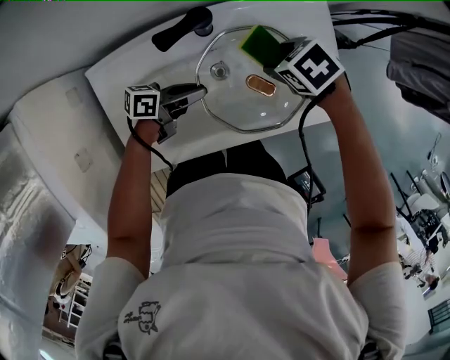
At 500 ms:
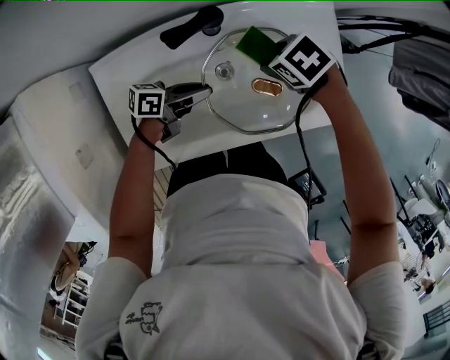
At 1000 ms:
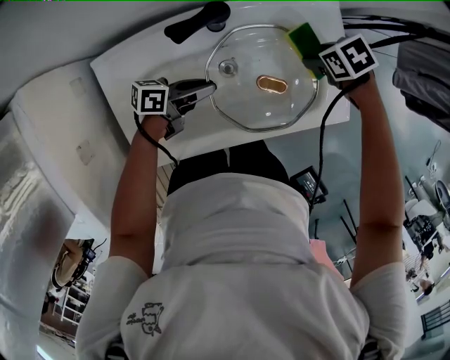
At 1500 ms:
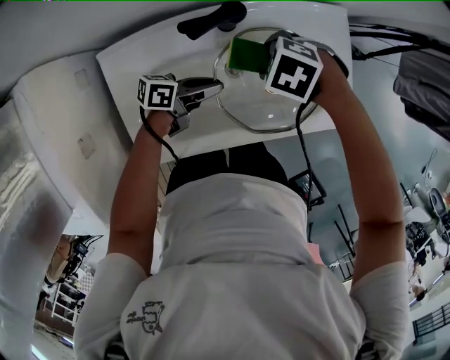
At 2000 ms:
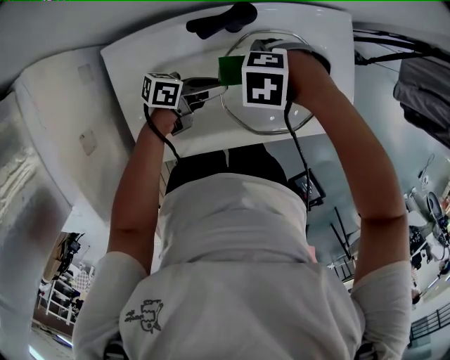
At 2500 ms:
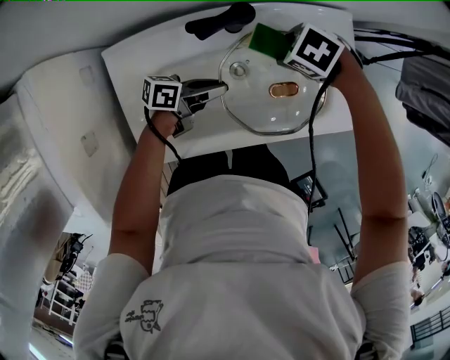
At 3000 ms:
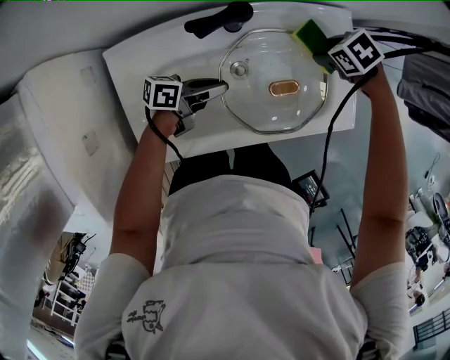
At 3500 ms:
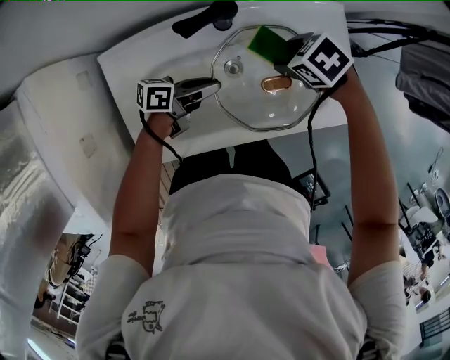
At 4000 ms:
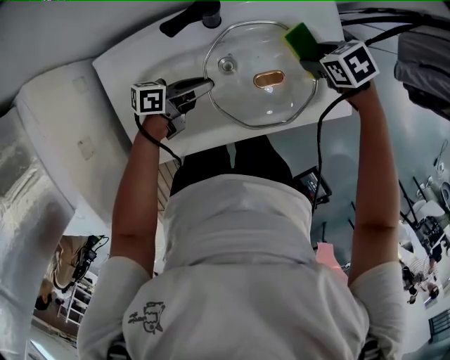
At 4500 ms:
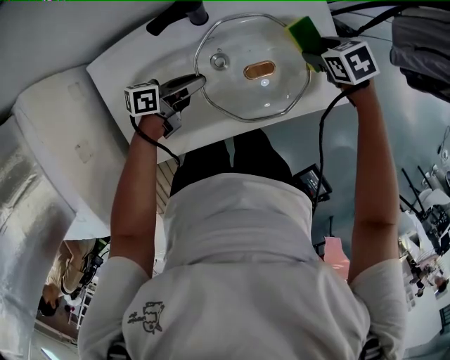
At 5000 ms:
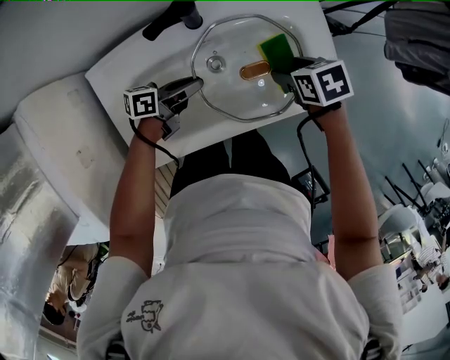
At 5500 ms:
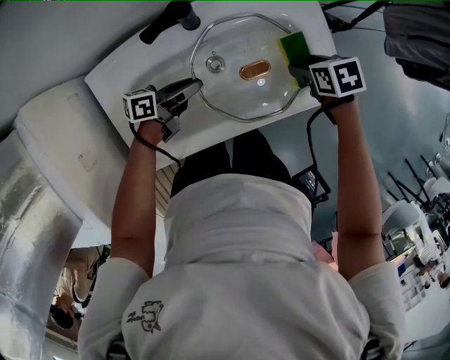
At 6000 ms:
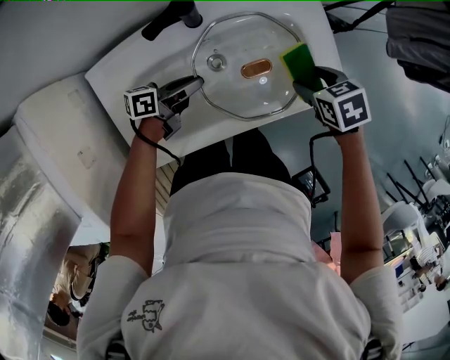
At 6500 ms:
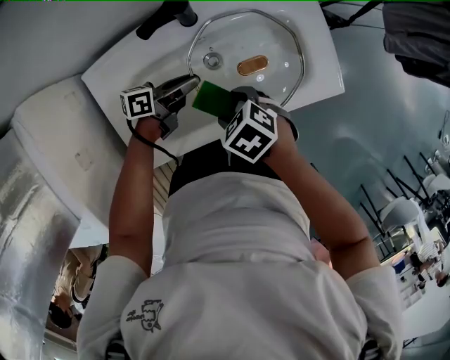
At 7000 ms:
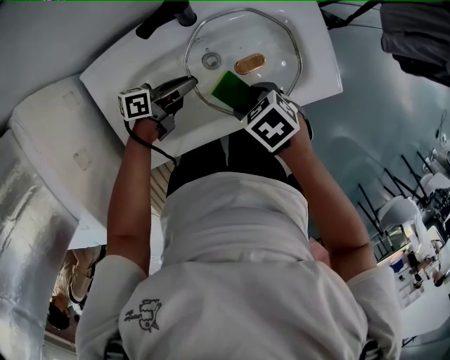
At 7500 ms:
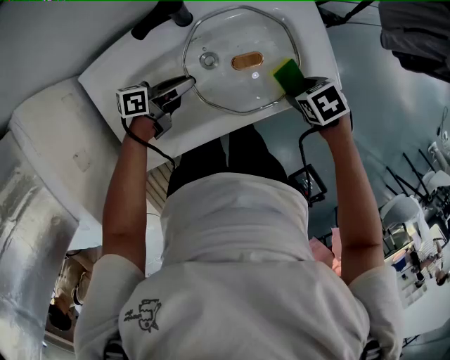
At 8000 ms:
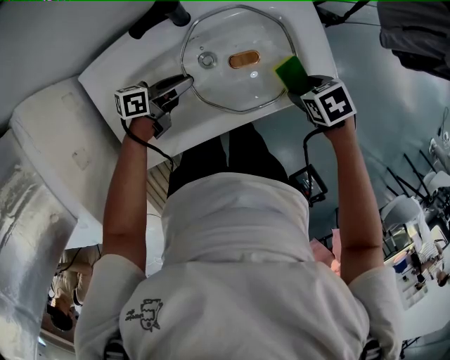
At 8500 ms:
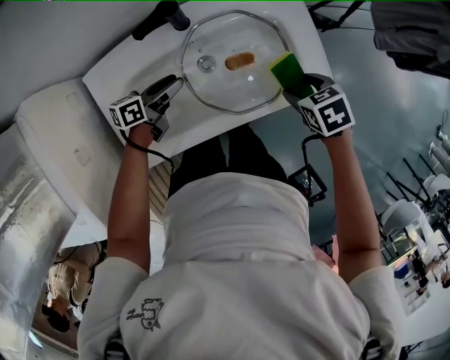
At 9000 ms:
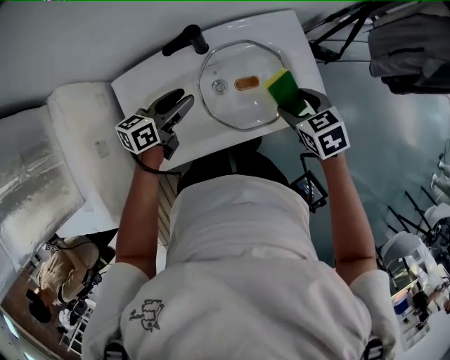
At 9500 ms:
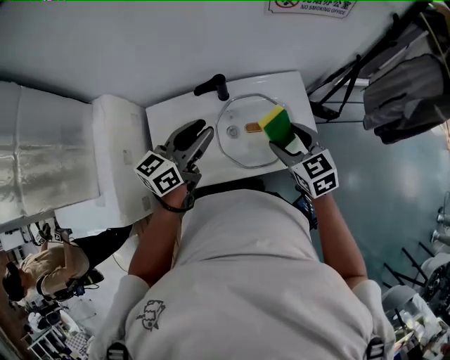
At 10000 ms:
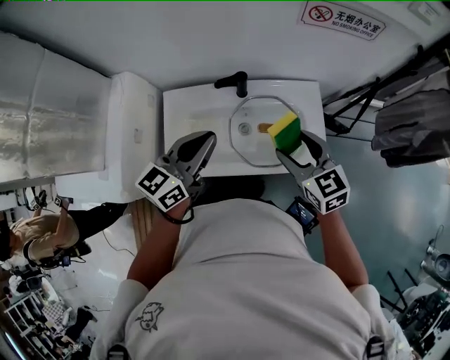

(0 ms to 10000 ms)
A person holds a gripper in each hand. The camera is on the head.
0 ms - 2000 ms: The right gripper ends up roughly 10 cm from where it was, and rolls counterclockwise, seen from behind, by roughly 40 degrees.
2000 ms - 4000 ms: The right gripper shifts by about 20 cm, and rotates around the line of its fingers by about 50 degrees, clockwise from behind.
4000 ms - 6000 ms: The right gripper ends up about 10 cm from where it was.
8000 ms - 10000 ms: The two grippers go approximately 35 cm upward. The right gripper tips its fingers upward by roughly 50 degrees, while the left gripper turns by some 60 degrees, and closes.

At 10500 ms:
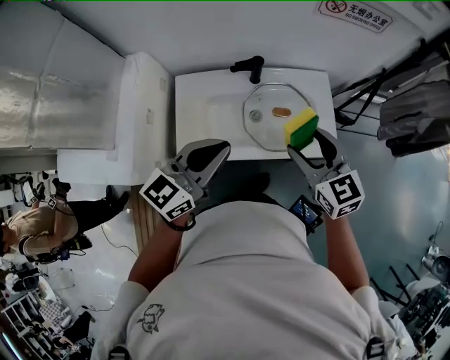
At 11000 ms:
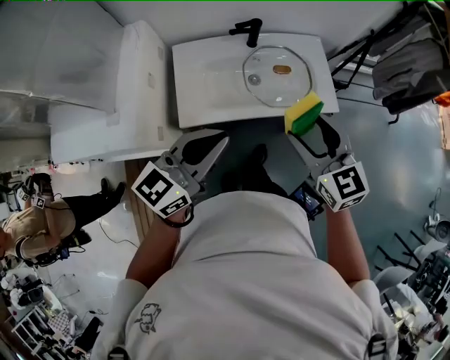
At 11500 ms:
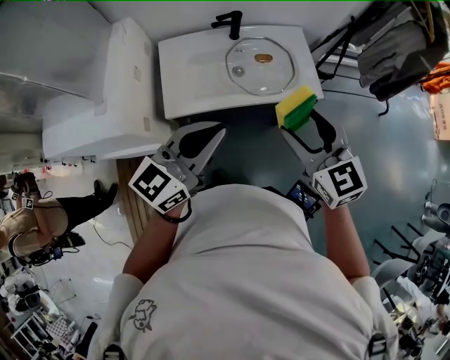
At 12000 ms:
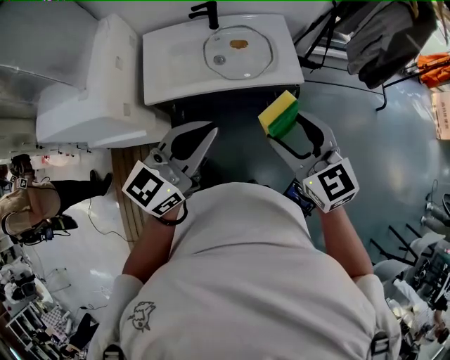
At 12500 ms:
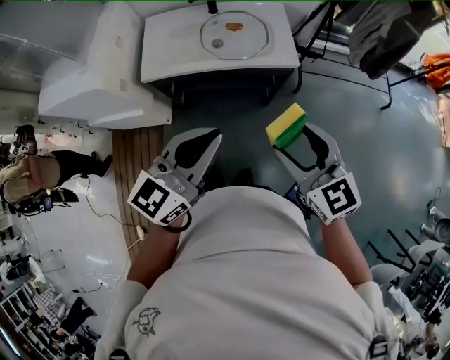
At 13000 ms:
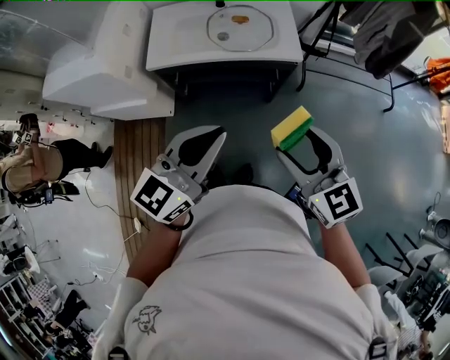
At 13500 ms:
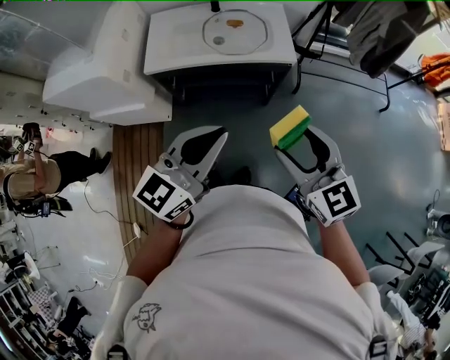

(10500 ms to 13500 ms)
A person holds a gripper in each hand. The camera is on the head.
10500 ms - 12000 ms: The right gripper goes about 25 cm backward, while the left gripper is displaced backward and to the right by about 25 cm.
12000 ms - 13500 ms: The two grippers go approximately 15 cm backward and to the right.

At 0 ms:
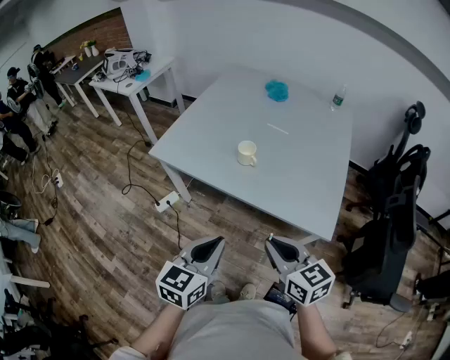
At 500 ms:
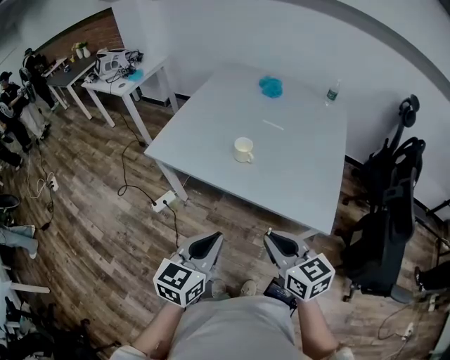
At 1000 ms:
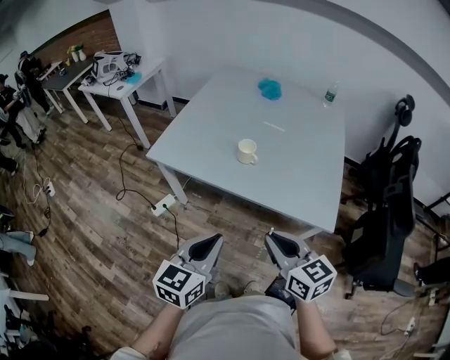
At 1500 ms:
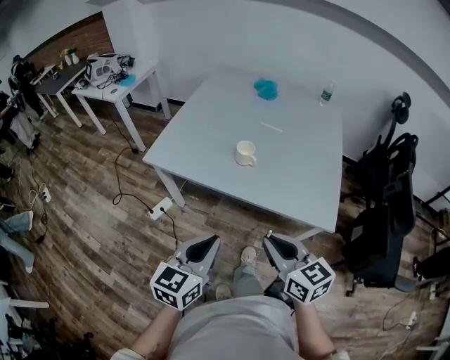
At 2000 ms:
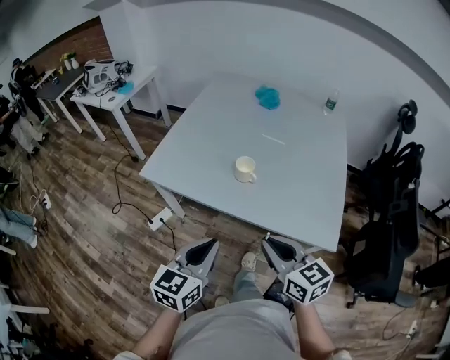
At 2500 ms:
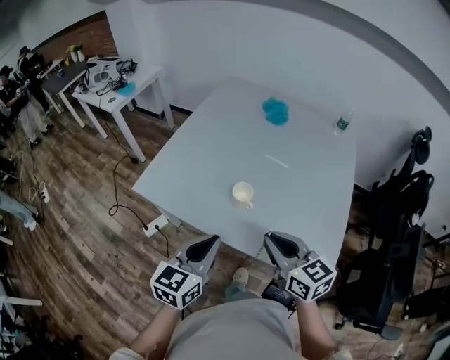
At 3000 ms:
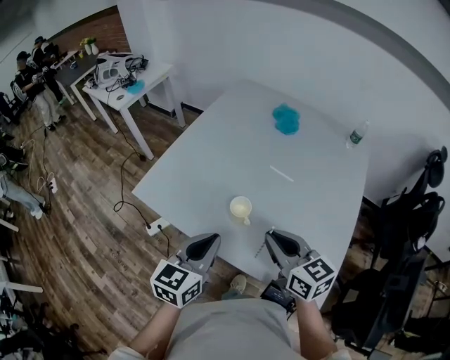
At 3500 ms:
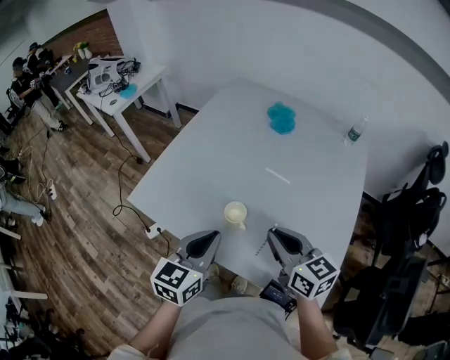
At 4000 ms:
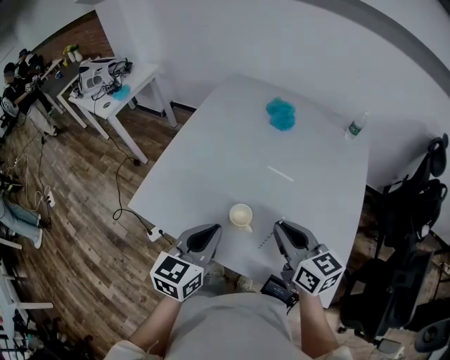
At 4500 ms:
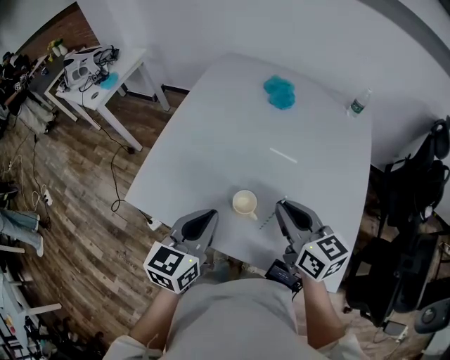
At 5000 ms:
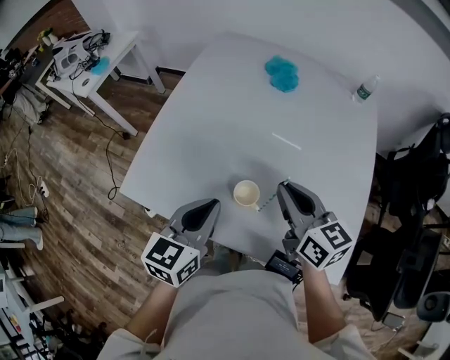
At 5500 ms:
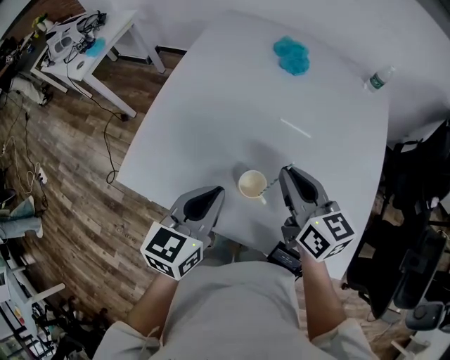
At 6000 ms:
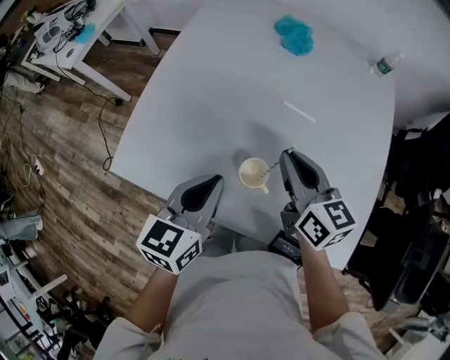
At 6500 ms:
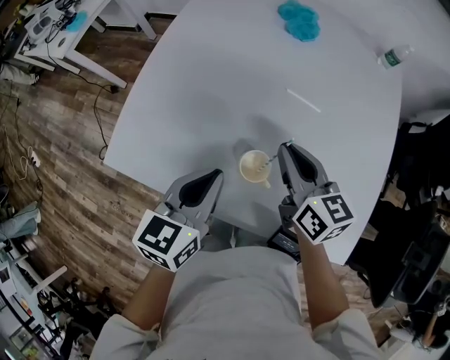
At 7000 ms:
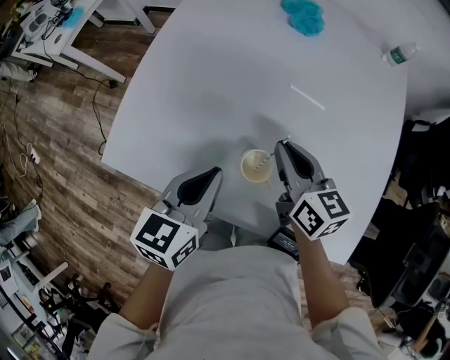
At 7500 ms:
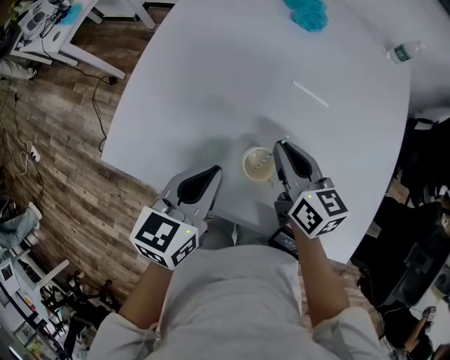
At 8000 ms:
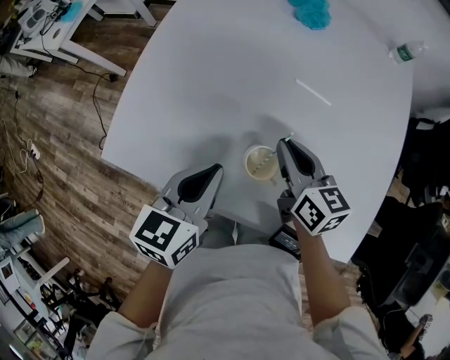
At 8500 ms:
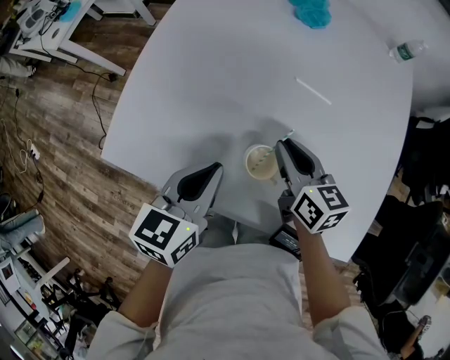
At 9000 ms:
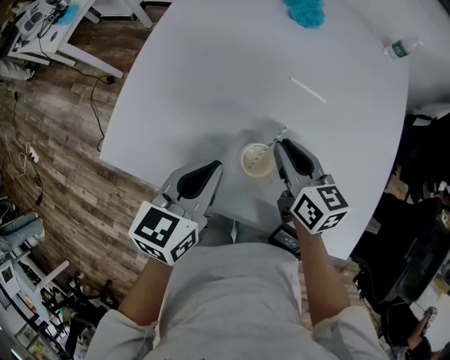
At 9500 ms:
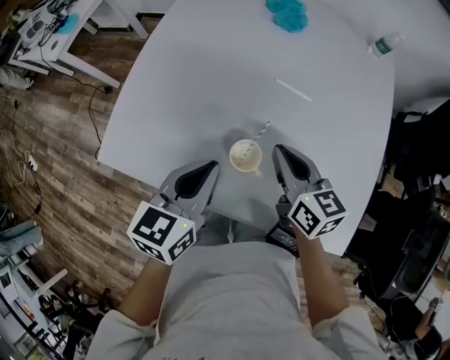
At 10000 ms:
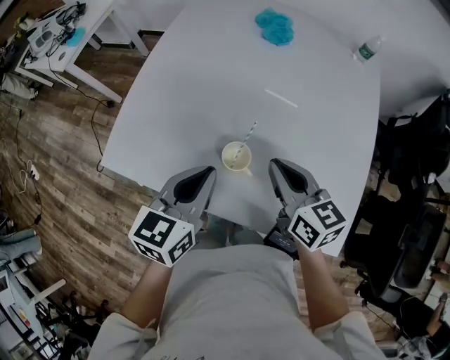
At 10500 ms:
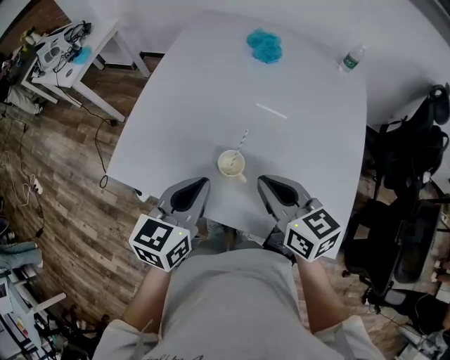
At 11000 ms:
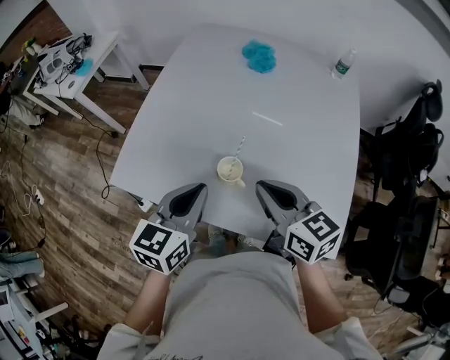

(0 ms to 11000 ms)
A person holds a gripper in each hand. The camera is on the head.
0 ms - 2000 ms: The two grippers go roughly 10 cm forward.
2000 ms - 3500 ms: Both grippers move forward and to the right, about 25 cm.
3500 ms - 5500 ms: Both grippers move forward, about 10 cm.
5500 ms - 7500 ms: The left gripper moves downward, about 5 cm. Meanwhile the right gripper heads downward, covering some 10 cm.
7500 ms - 9000 ms: The grippers move only a little.
9000 ms - 11000 ms: The left gripper goes some 10 cm upward and backward. The right gripper travels upward and backward by about 20 cm.

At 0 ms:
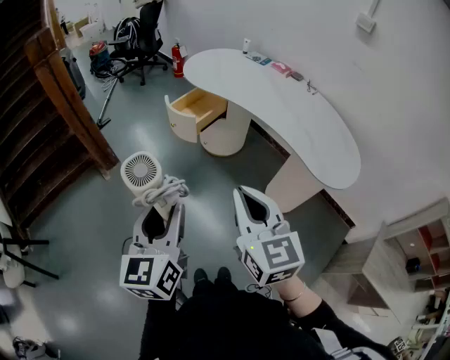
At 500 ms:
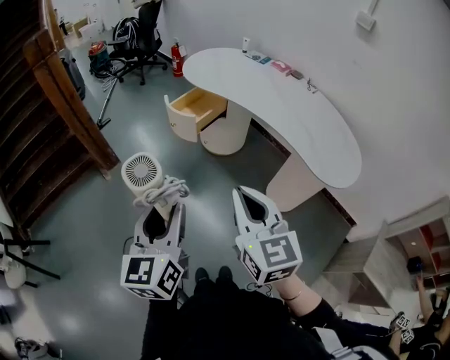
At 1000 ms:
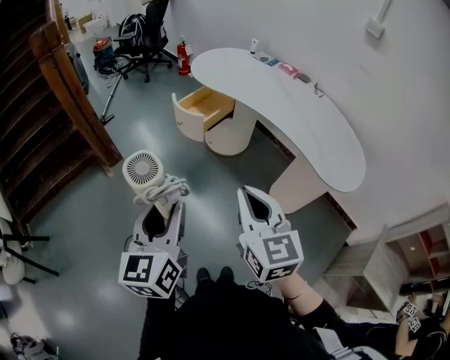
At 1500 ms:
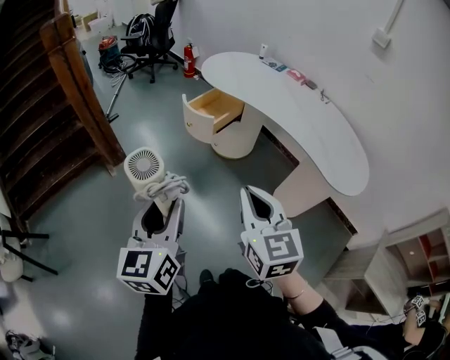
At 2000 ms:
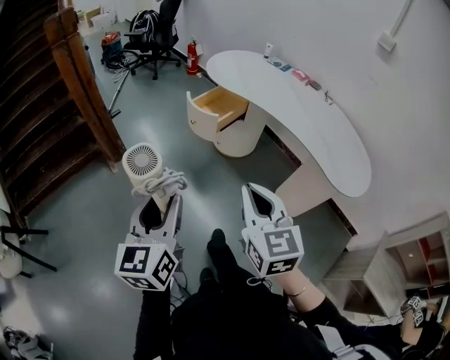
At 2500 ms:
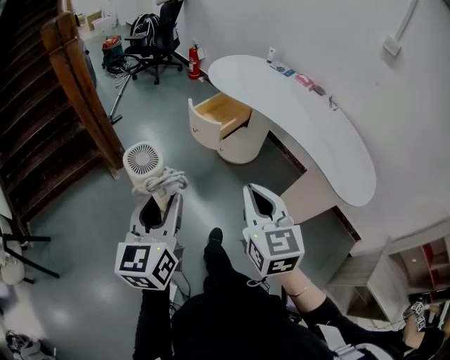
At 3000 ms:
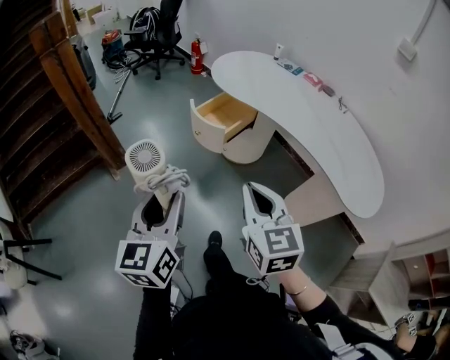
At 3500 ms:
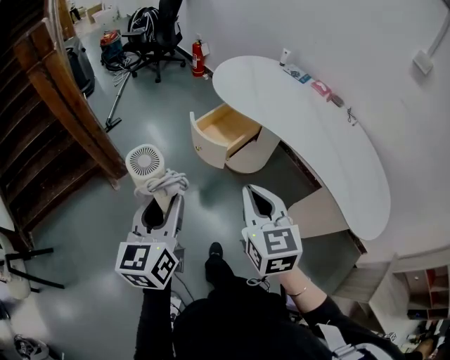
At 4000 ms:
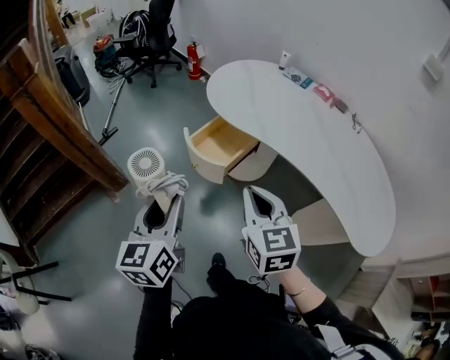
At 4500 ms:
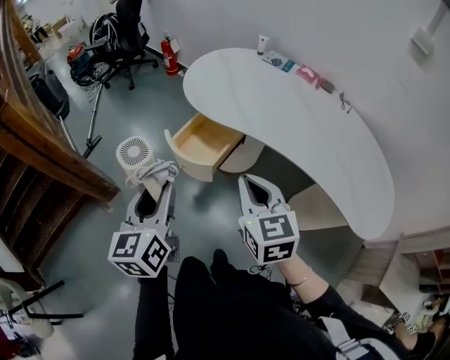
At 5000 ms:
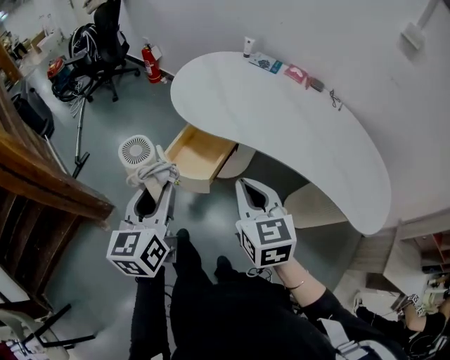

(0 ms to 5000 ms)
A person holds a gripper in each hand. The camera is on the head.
0 ms - 2500 ms: The right gripper moves forward and to the left, approximately 10 cm. The left gripper is displaced to the left and forward by some 10 cm.
2500 ms - 5000 ms: The grippers both shift forward by roughly 35 cm.
